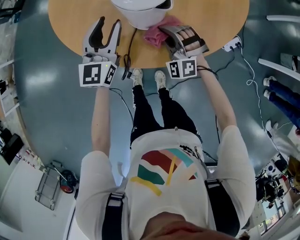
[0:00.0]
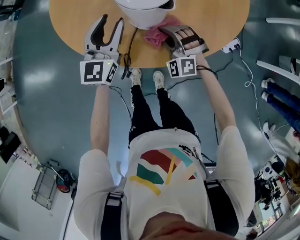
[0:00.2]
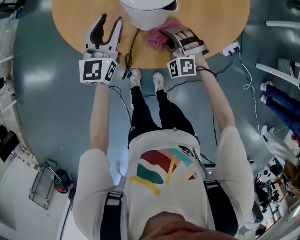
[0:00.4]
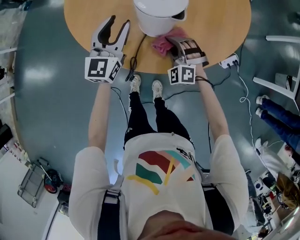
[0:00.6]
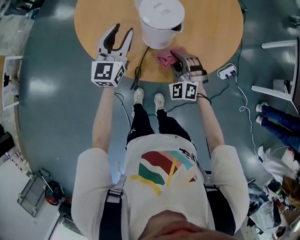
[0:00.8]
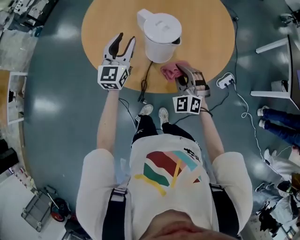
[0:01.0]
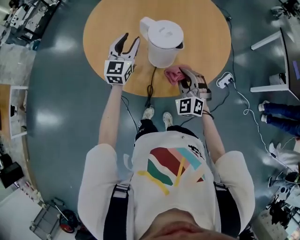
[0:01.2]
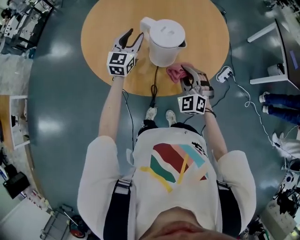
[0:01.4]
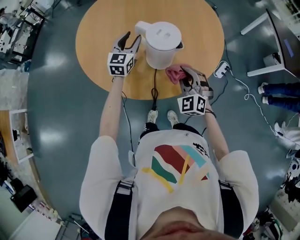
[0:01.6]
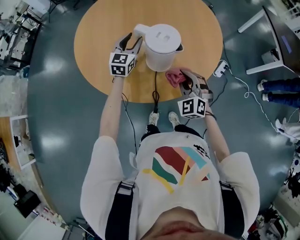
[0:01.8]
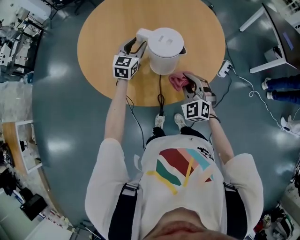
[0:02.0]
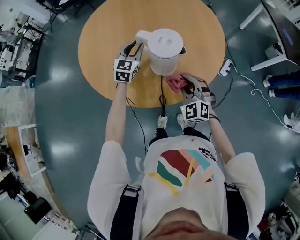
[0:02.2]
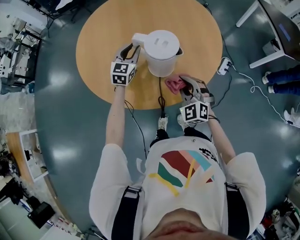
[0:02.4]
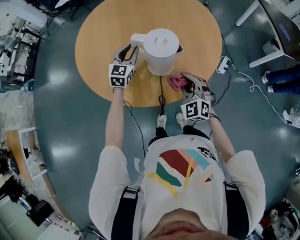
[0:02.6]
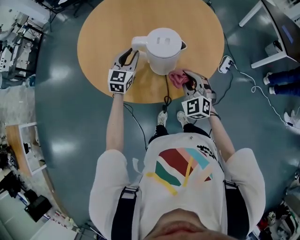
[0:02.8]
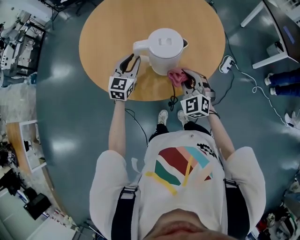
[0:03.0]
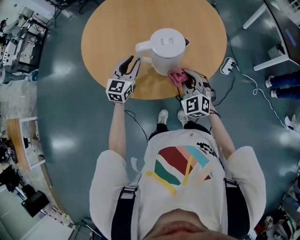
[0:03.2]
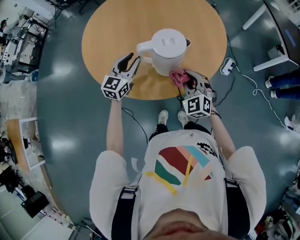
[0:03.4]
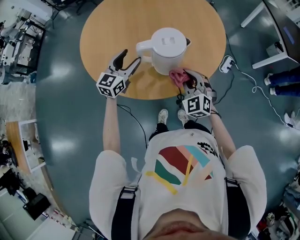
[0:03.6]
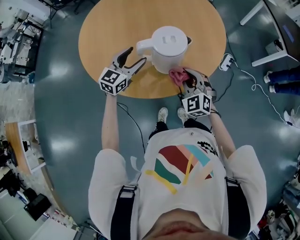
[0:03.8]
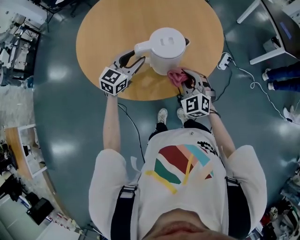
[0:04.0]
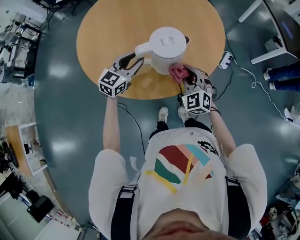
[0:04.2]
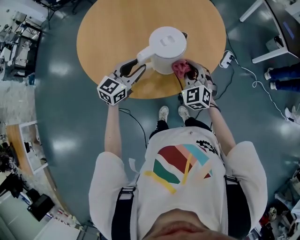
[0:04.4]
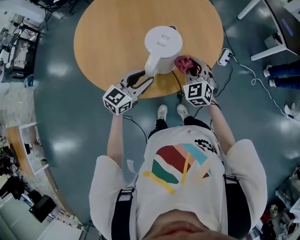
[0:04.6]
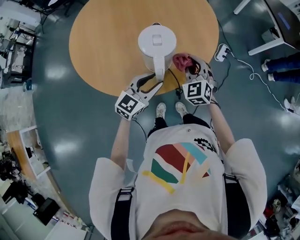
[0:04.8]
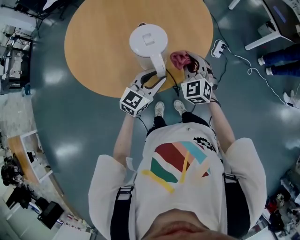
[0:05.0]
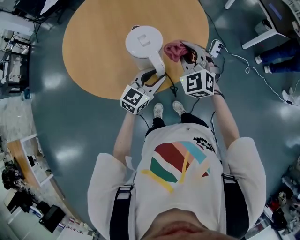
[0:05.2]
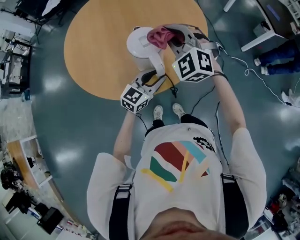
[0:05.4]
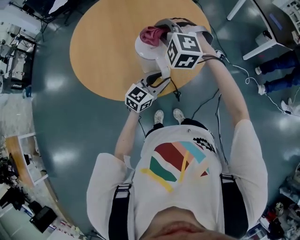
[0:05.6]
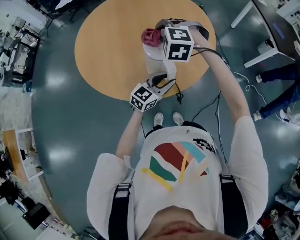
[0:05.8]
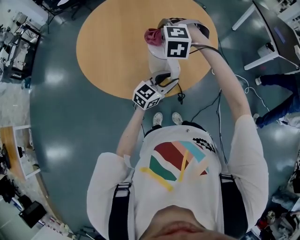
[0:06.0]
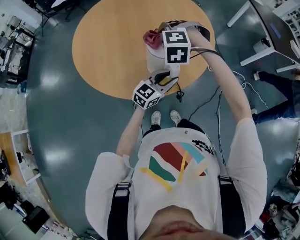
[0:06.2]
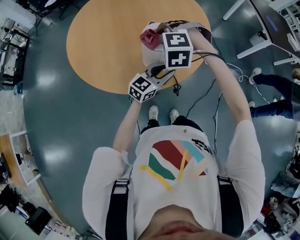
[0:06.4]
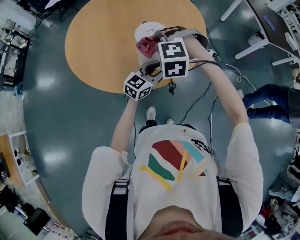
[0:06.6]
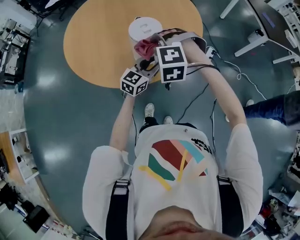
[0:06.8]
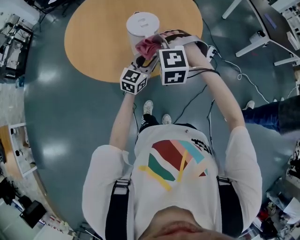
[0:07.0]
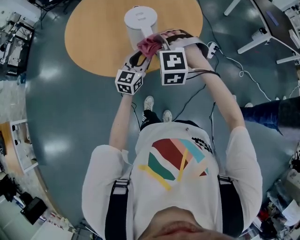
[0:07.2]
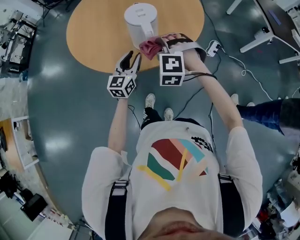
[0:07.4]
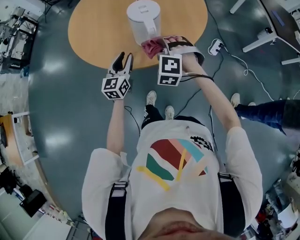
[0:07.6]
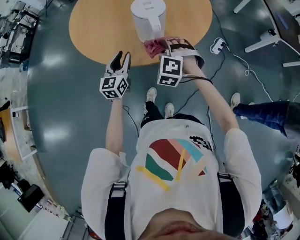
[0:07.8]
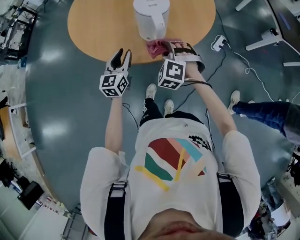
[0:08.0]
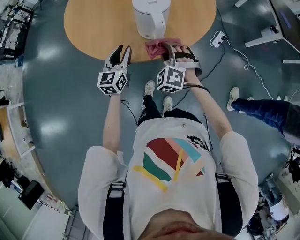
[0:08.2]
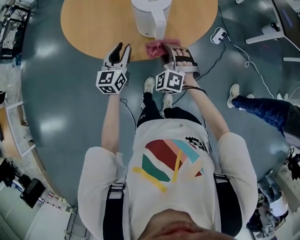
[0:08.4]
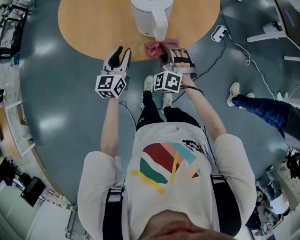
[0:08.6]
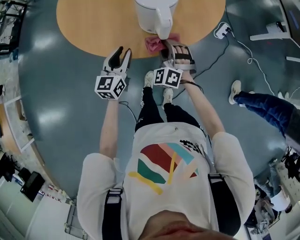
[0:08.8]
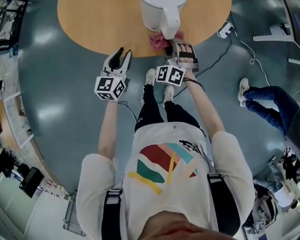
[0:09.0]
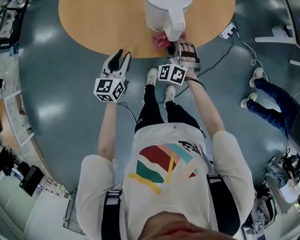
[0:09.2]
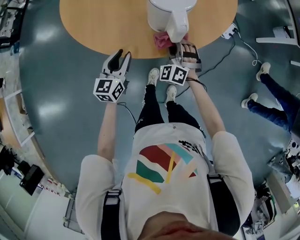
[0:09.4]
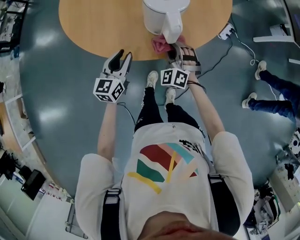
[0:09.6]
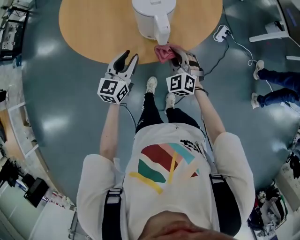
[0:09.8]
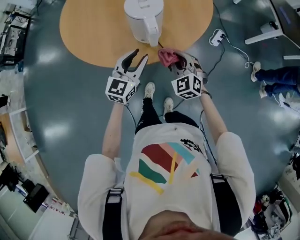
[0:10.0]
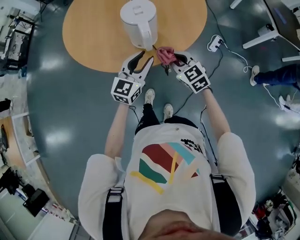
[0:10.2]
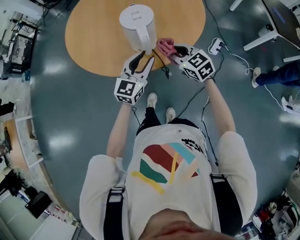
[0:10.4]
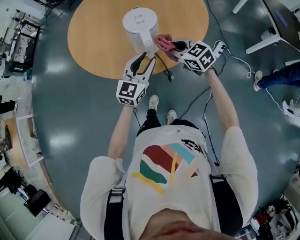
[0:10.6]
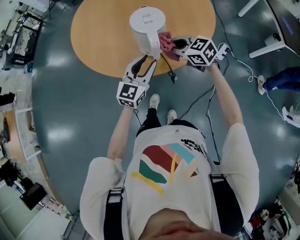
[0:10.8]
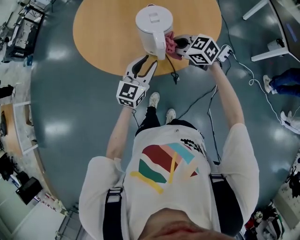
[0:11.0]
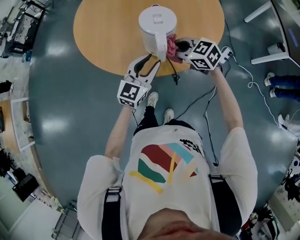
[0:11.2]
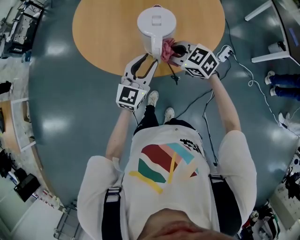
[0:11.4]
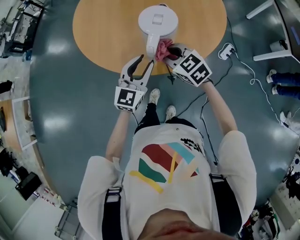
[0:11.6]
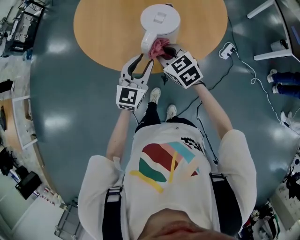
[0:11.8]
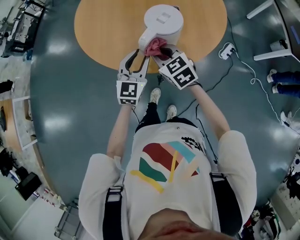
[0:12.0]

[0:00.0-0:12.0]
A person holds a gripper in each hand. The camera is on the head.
0.0 to 1.6 s: The right gripper heads upward, covering roughly 15 cm, and rotates roughly 30 degrees. Meanwhile the left gripper shifts about 10 cm forward.
1.6 to 3.0 s: The left gripper goes some 10 cm backward.
3.0 to 4.4 s: The left gripper shifts about 5 cm backward, rotates some 20 degrees, and opens and closes again.
4.4 to 6.0 s: The right gripper moves to the left and upward, about 15 cm, and rotates some 50 degrees. Meanwhile the left gripper shifts approximately 15 cm to the right.
6.0 to 7.6 s: The right gripper travels backward, to the right and downward by some 25 cm; the left gripper moves to the left and backward, roughly 15 cm, and rotates some 40 degrees.
7.6 to 9.0 s: The left gripper heads downward and to the left, covering about 10 cm. The right gripper travels downward and forward by approximately 15 cm, and rotates roughly 30 degrees.
9.0 to 10.4 s: The right gripper shifts some 15 cm upward and to the right, and rotates roughly 50 degrees. Meanwhile the left gripper goes approximately 20 cm to the right and upward, and rotates roughly 20 degrees.
10.4 to 12.0 s: The two grippers go some 10 cm to the left and forward.

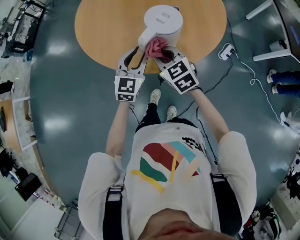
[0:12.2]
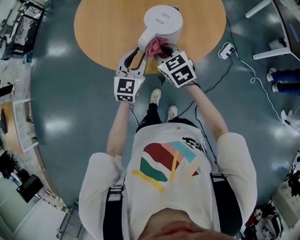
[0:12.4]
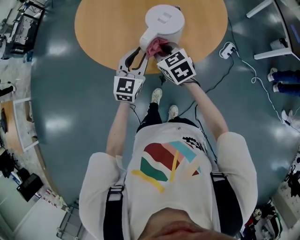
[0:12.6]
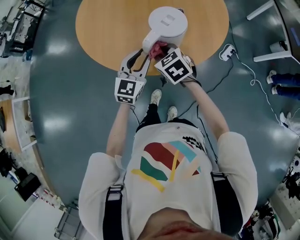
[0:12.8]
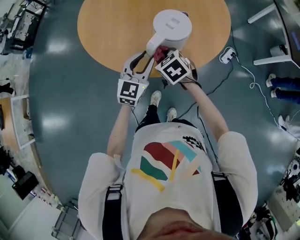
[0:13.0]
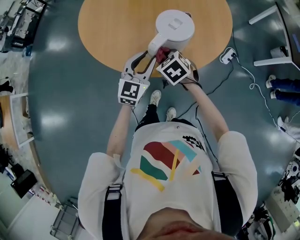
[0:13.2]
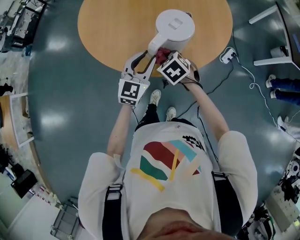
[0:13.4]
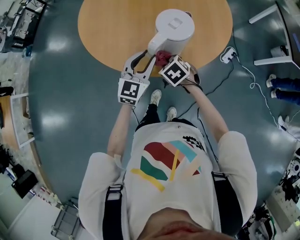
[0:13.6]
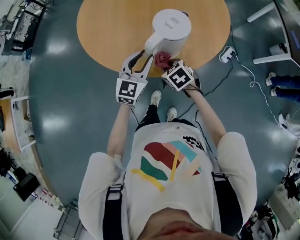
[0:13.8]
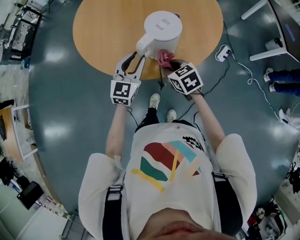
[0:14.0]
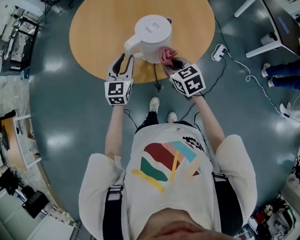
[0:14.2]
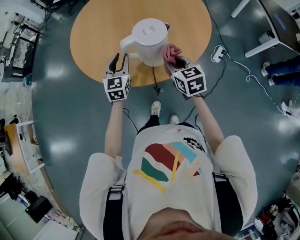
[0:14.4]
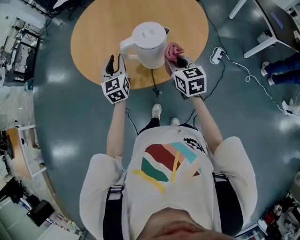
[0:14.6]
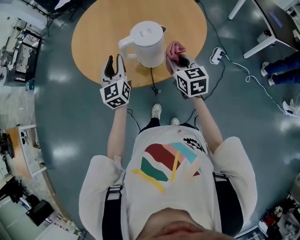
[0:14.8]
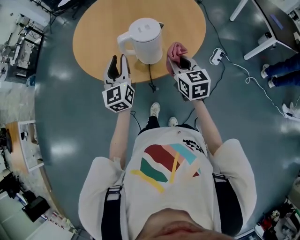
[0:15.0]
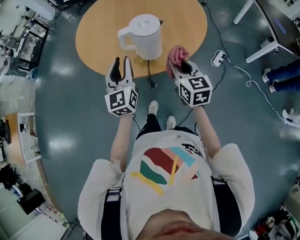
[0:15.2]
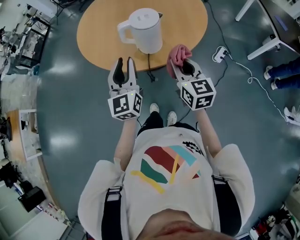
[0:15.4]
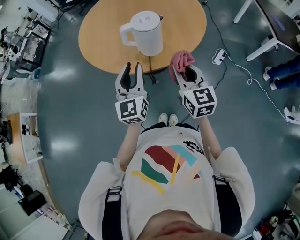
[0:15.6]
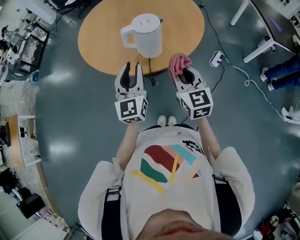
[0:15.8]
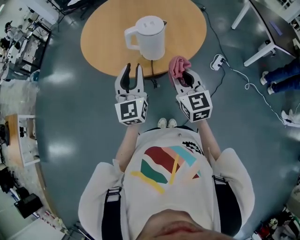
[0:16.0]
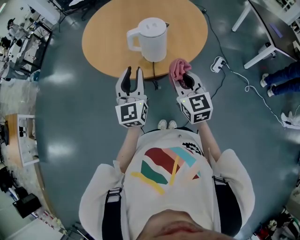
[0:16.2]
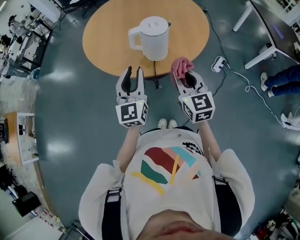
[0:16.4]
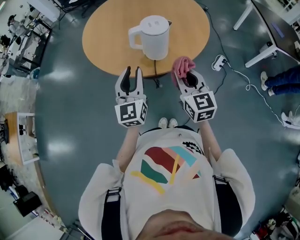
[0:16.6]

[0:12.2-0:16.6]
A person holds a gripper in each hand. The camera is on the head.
12.2 to 13.6 s: The right gripper is displaced downward by approximately 10 cm, and turns by some 30 degrees.
13.6 to 15.2 s: The left gripper shifts some 15 cm upward and backward, and rotates some 30 degrees. The right gripper travels upward, to the right and backward by about 25 cm, and tips its fingers upward by roughly 40 degrees.
15.2 to 16.6 s: Both grippers travel together backward, about 5 cm.

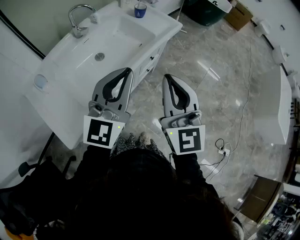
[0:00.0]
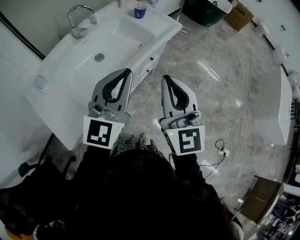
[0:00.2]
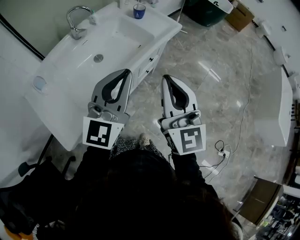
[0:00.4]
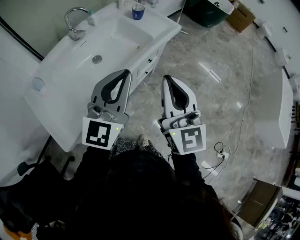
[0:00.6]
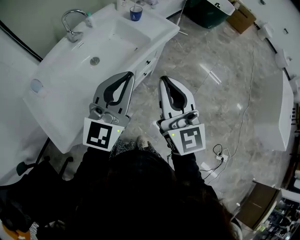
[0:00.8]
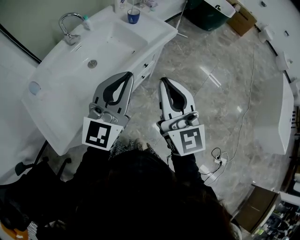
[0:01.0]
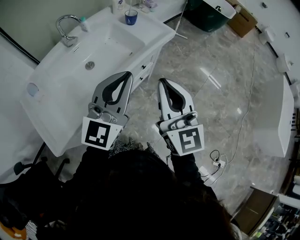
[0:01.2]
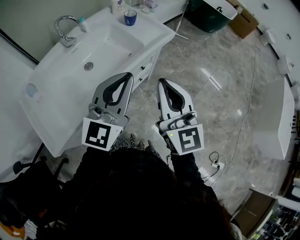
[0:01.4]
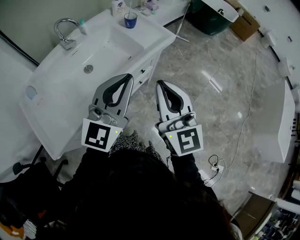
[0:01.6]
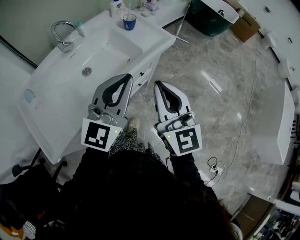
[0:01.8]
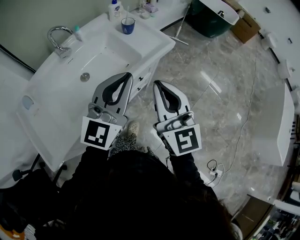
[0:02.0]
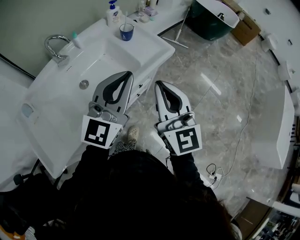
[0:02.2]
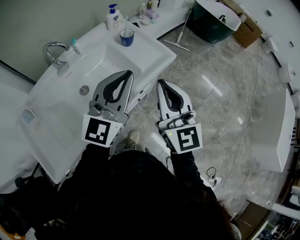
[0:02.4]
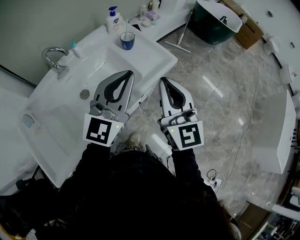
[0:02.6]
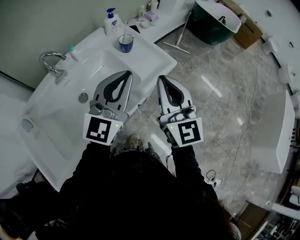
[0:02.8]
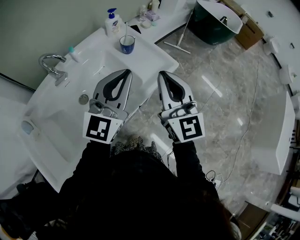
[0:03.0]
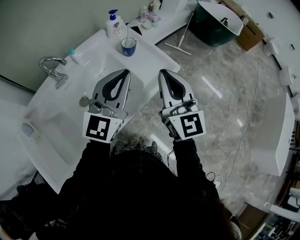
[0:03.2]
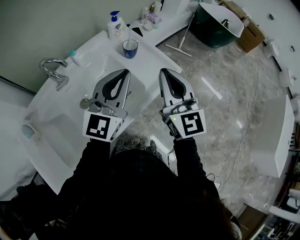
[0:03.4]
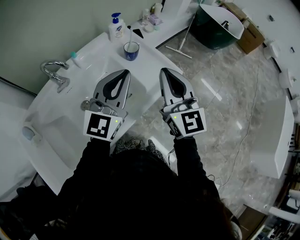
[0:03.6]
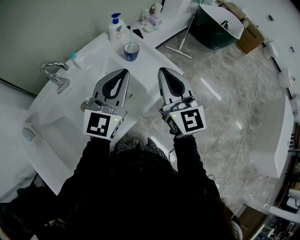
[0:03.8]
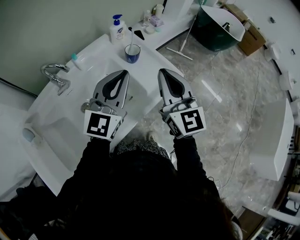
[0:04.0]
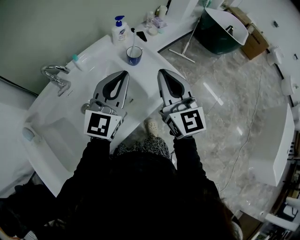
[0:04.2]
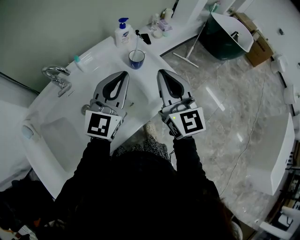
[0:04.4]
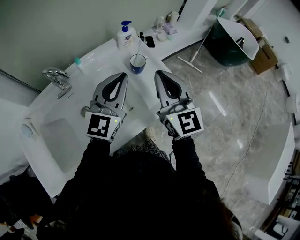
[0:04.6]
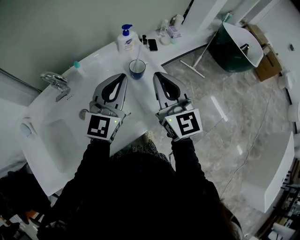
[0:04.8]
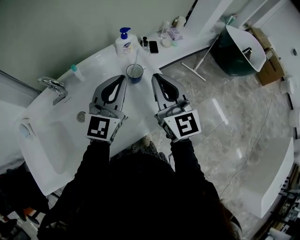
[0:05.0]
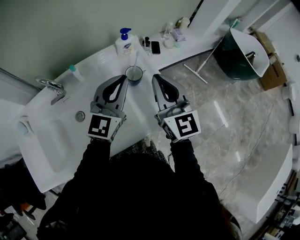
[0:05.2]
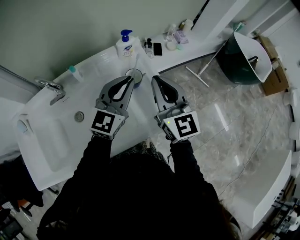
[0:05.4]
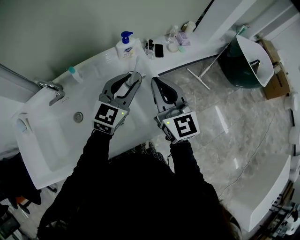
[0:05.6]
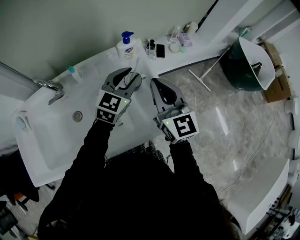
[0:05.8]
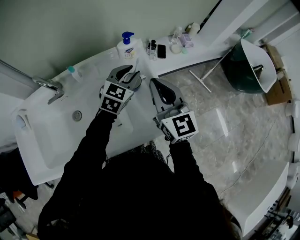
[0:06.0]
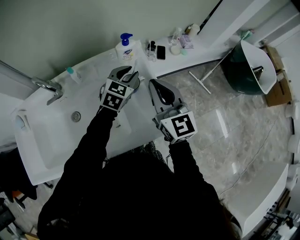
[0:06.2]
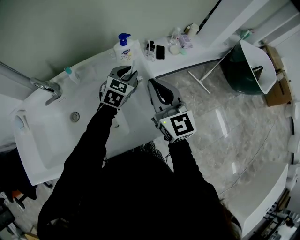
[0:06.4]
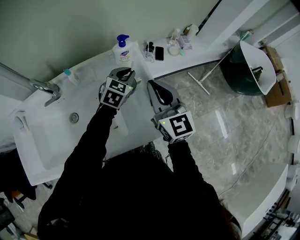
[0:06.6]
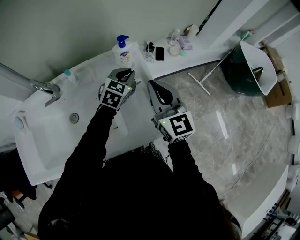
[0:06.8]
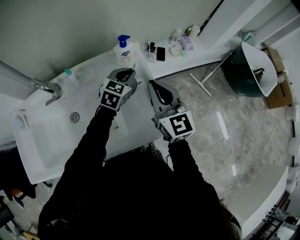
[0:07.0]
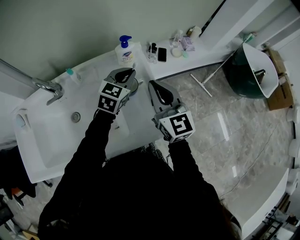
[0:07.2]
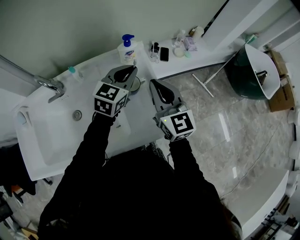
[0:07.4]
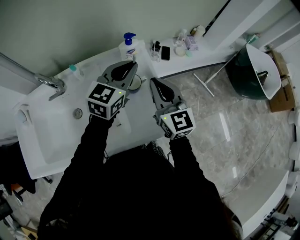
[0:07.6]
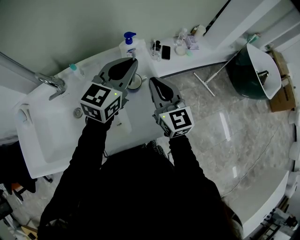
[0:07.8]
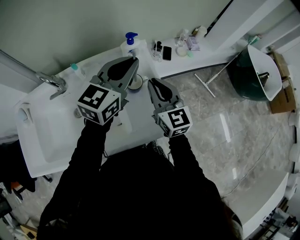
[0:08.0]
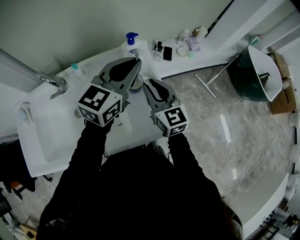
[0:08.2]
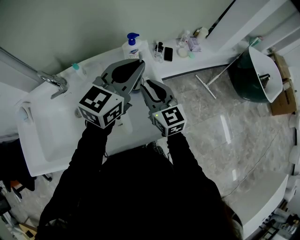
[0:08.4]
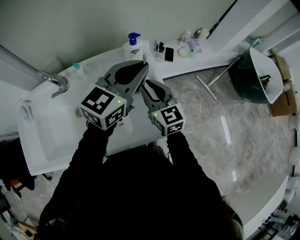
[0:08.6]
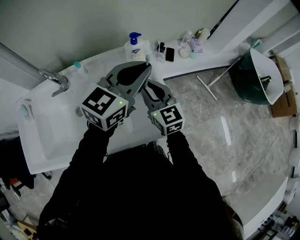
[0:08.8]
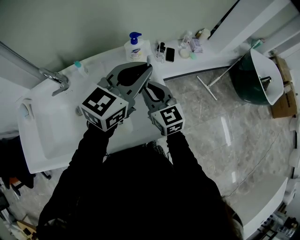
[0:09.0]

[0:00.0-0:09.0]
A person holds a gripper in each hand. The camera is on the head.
0.0 to 1.6 s: The left gripper goes approximately 15 cm to the right and forward. Meanwhile the right gripper moves forward and to the right, some 15 cm.
1.6 to 3.0 s: The two grippers go approximately 25 cm forward.
3.0 to 4.4 s: The two grippers go about 10 cm forward.
4.4 to 6.0 s: The left gripper travels forward and downward by roughly 25 cm, rotates some 30 degrees, and opens; the right gripper moves forward, roughly 15 cm, and swivels roughly 20 degrees.
6.0 to 7.6 s: The left gripper is displaced upward by approximately 10 cm, and closes up.
7.6 to 9.0 s: The right gripper travels downward by about 5 cm; the left gripper goes approximately 5 cm upward.
